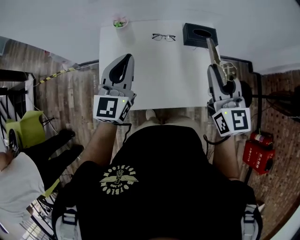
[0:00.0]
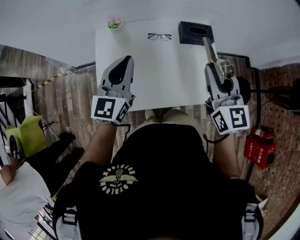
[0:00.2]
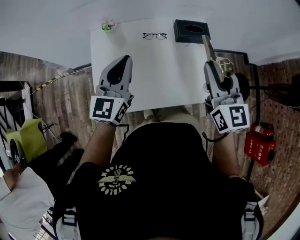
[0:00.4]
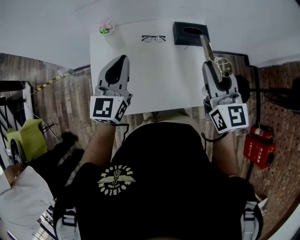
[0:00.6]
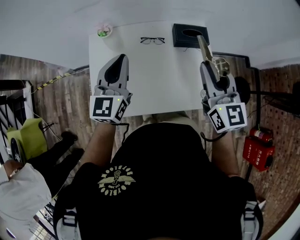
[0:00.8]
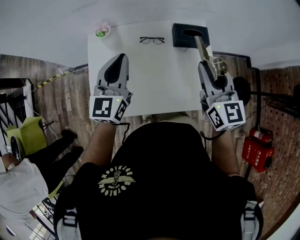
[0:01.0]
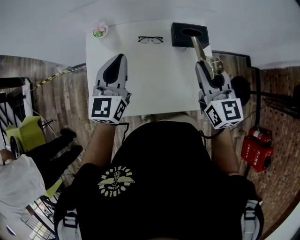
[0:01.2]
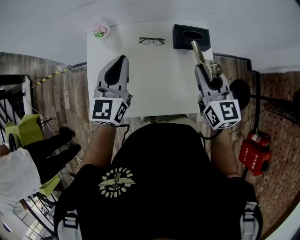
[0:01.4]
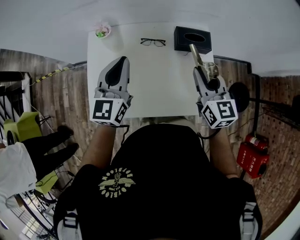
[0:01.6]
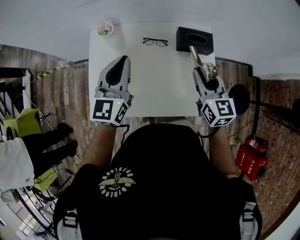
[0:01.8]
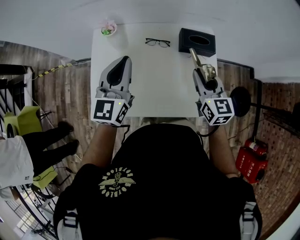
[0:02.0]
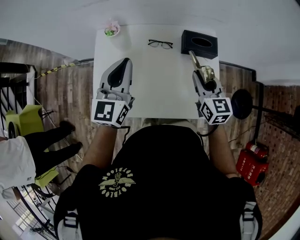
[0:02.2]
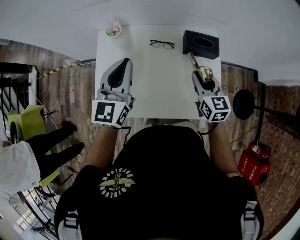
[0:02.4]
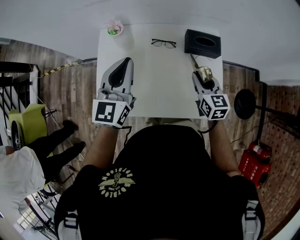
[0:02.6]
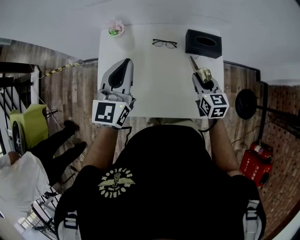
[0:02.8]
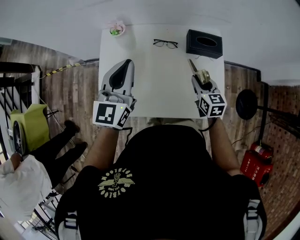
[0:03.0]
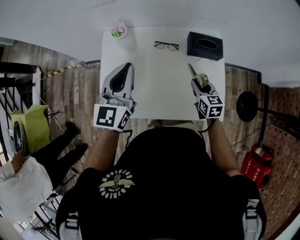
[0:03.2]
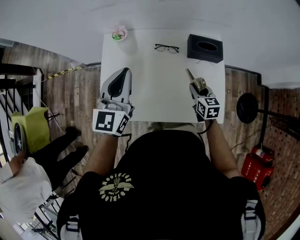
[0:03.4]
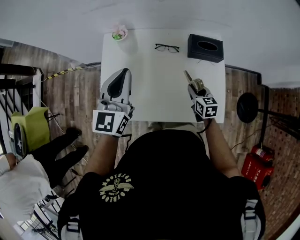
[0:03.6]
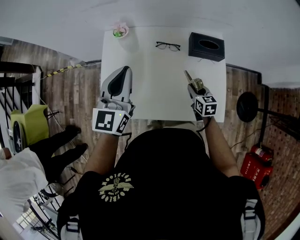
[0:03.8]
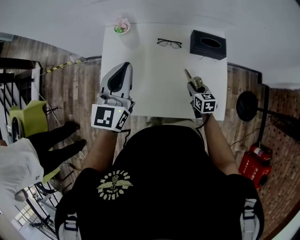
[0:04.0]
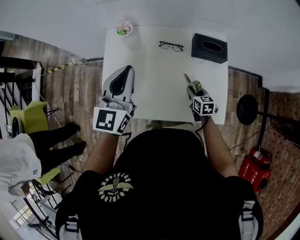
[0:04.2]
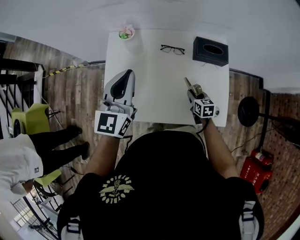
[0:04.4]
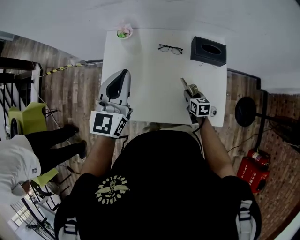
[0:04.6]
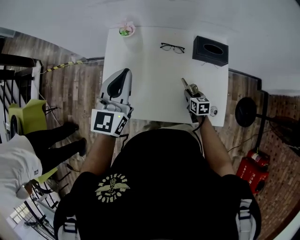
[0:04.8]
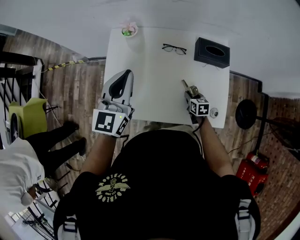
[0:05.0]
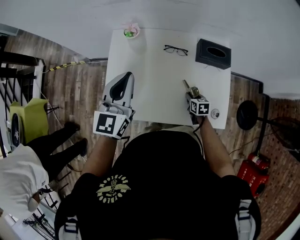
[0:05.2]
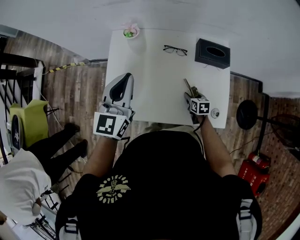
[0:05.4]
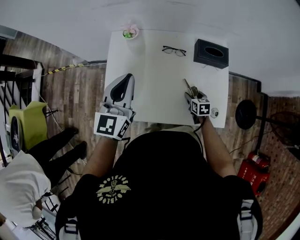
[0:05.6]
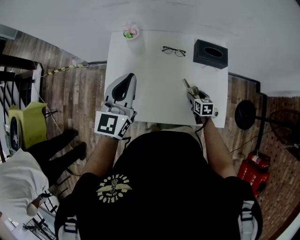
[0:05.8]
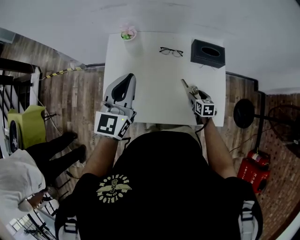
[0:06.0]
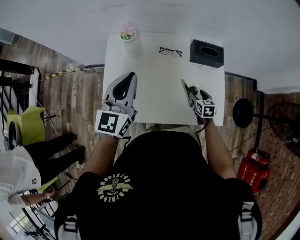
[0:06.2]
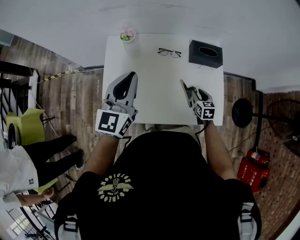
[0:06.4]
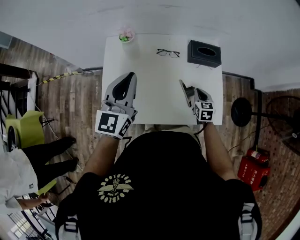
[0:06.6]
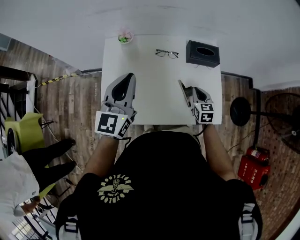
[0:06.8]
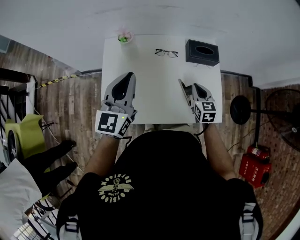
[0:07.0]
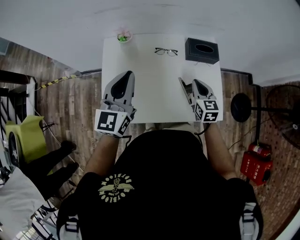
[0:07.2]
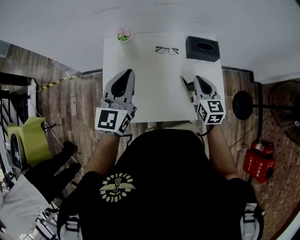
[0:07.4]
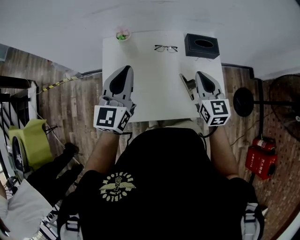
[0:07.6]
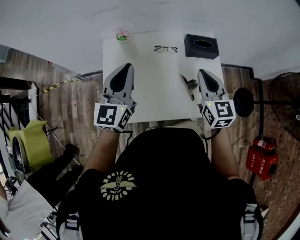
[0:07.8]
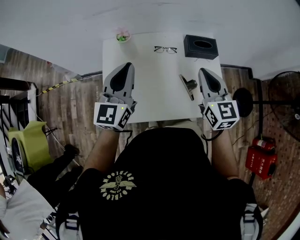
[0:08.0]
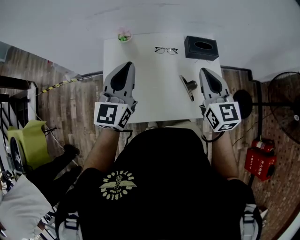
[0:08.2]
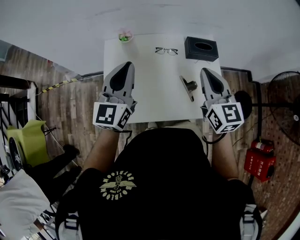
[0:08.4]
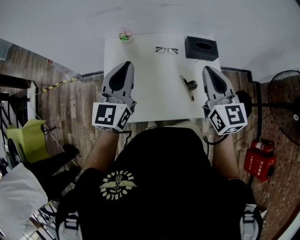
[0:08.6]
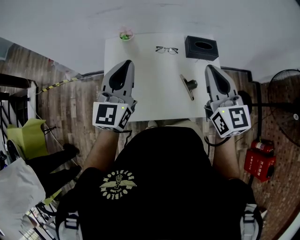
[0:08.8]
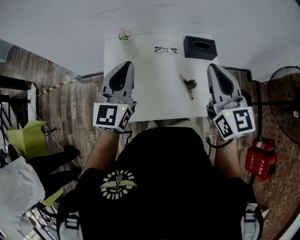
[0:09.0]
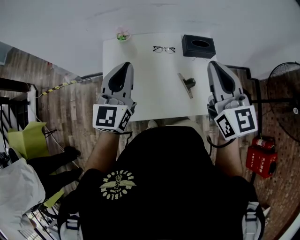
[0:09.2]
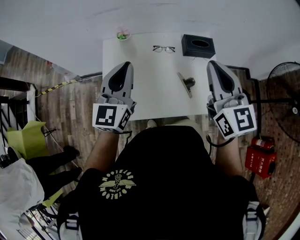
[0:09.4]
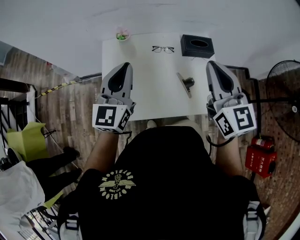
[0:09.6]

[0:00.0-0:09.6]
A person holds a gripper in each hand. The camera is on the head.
0.0 to 1.6 s: The left gripper shifts approximately 10 cm forward and to the right. Meanwhile the right gripper heads downward, forward and to the right, covering some 15 cm.
1.6 to 3.2 s: The right gripper goes about 15 cm downward.
3.2 to 4.8 s: The right gripper shifts approximately 15 cm downward.
4.8 to 6.4 s: The right gripper shifts some 5 cm upward, and opens, then closes once more.
6.4 to 8.0 s: The right gripper travels upward by some 30 cm, angles its fingers upward, by approximately 30 degrees, and closes up.
8.0 to 9.6 s: The right gripper heads upward, covering about 10 cm.

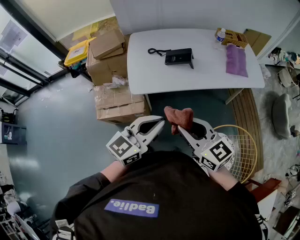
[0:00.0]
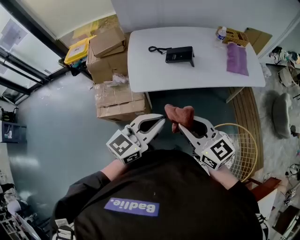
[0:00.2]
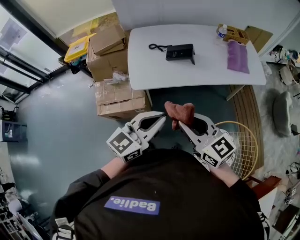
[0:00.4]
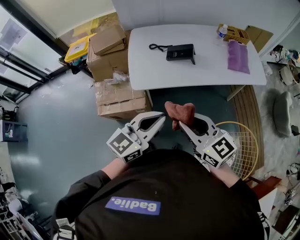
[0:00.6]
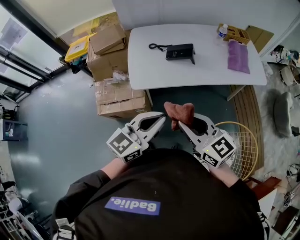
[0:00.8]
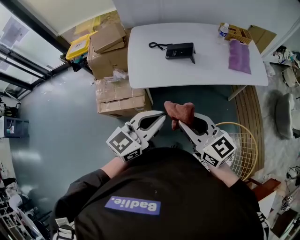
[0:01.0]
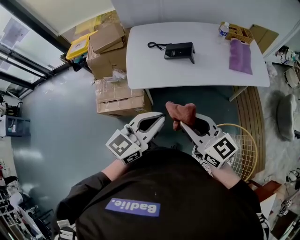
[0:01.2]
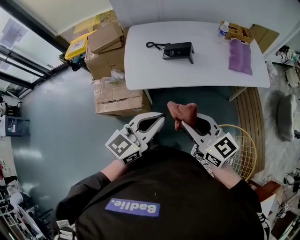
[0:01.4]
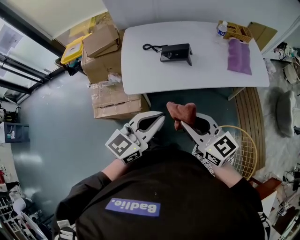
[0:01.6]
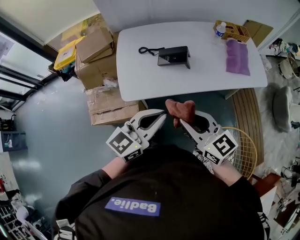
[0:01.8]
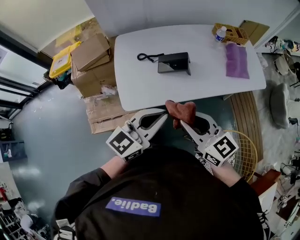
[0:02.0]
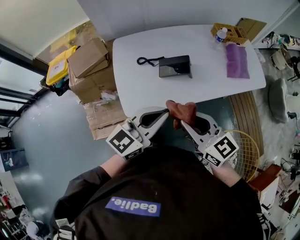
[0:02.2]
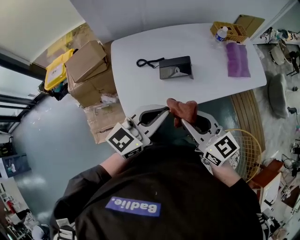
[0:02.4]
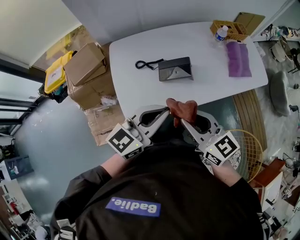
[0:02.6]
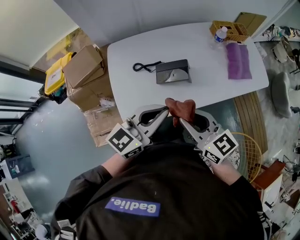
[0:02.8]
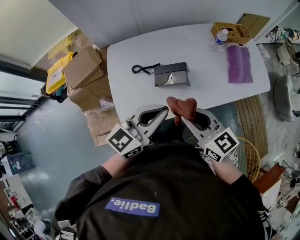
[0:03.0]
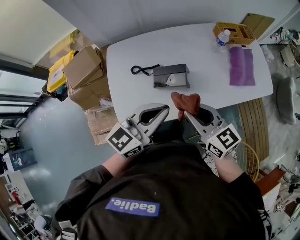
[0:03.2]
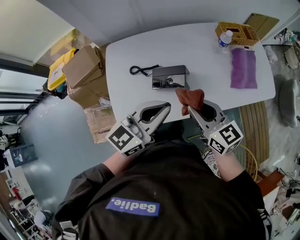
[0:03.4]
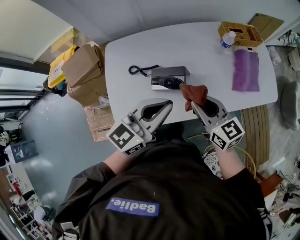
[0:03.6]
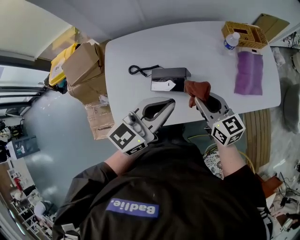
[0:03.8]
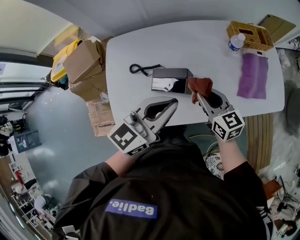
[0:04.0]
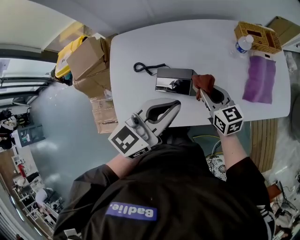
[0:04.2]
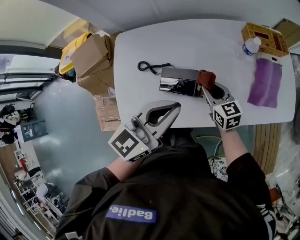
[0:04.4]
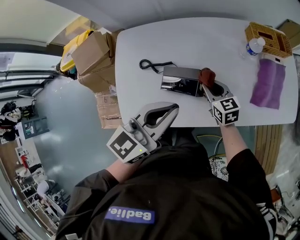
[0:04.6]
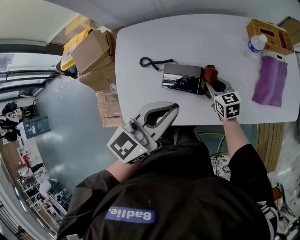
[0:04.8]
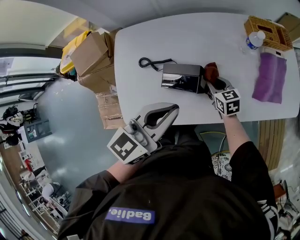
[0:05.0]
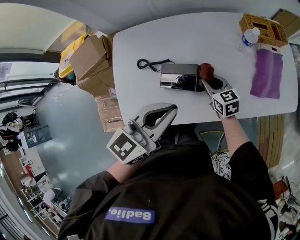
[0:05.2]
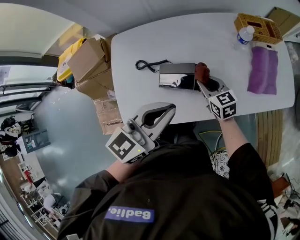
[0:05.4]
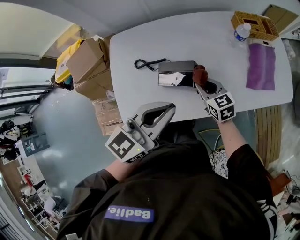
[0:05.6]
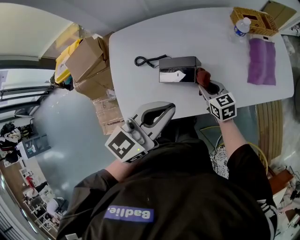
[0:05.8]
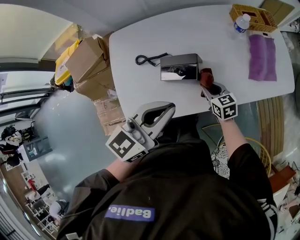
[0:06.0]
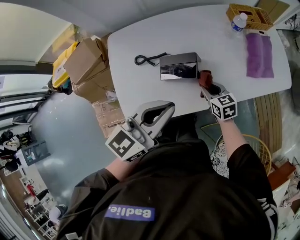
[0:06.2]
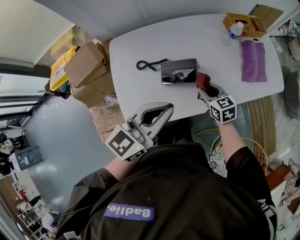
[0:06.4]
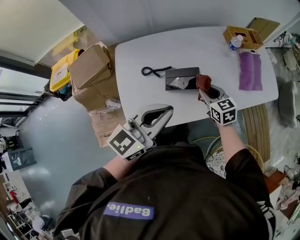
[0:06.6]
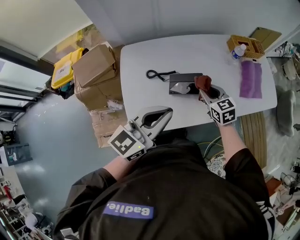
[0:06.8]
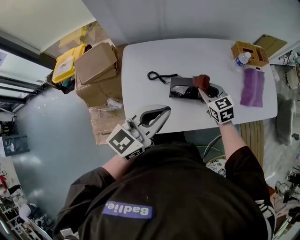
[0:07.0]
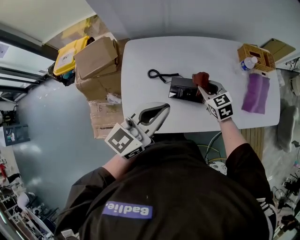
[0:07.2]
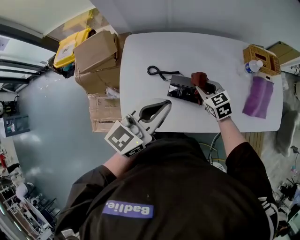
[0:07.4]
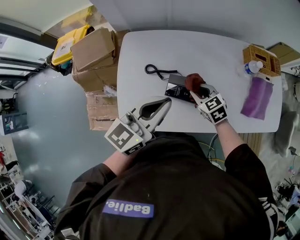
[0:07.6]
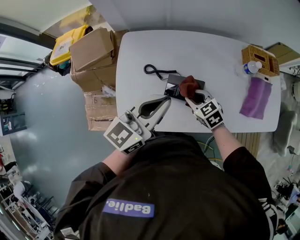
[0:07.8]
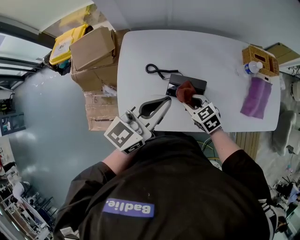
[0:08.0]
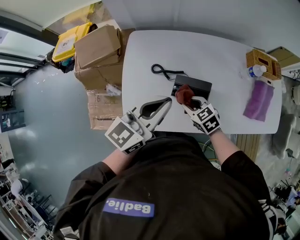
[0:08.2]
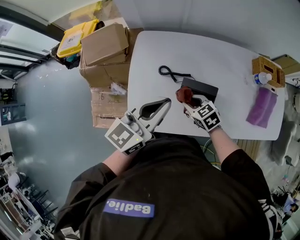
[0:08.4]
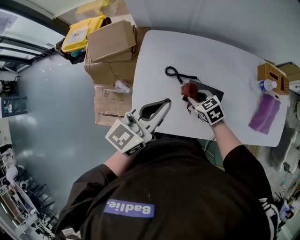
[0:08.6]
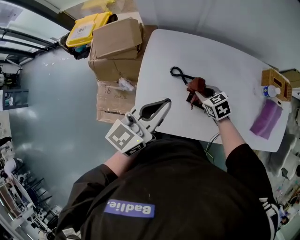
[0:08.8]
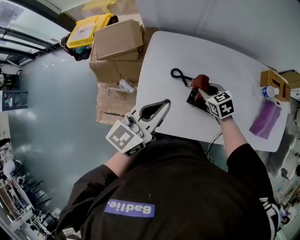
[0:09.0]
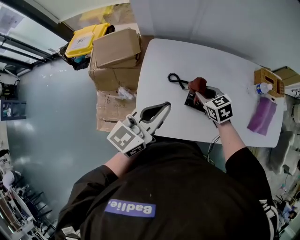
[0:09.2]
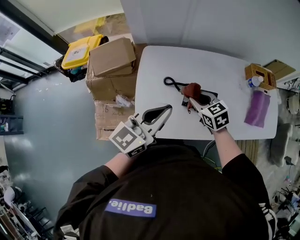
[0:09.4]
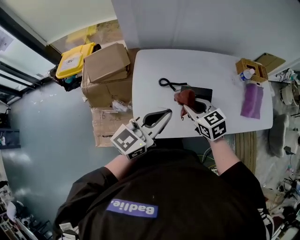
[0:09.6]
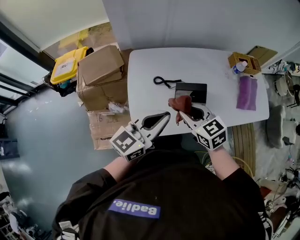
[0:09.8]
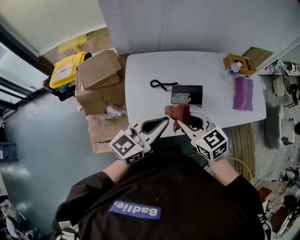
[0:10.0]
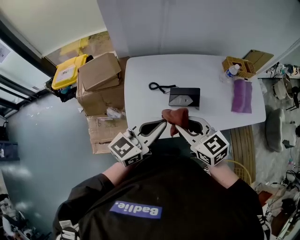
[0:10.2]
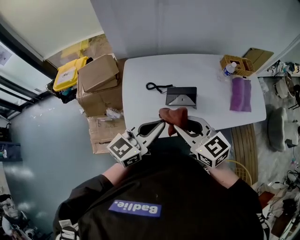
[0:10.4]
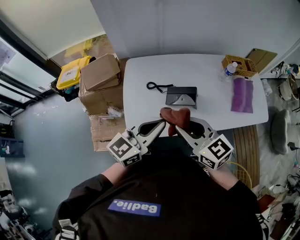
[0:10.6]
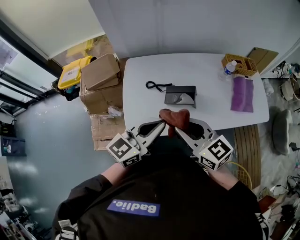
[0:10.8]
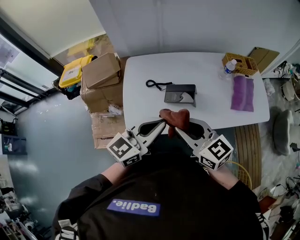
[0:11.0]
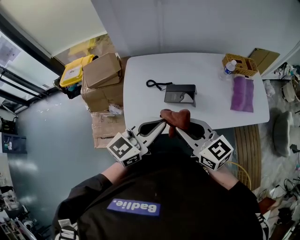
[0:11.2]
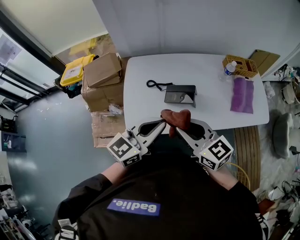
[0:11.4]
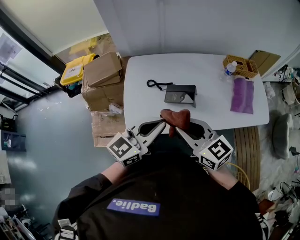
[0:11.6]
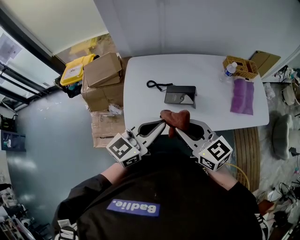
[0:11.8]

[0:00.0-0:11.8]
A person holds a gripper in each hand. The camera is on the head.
0.0 to 1.4 s: The left gripper moves some 5 cm, while the right gripper shifts some 5 cm to the right.
1.4 to 3.0 s: The grippers both shift forward by roughly 25 cm.
3.0 to 4.4 s: The left gripper moves forward and to the right, approximately 15 cm. Meanwhile the right gripper shifts some 30 cm forward and downward.
4.4 to 6.0 s: The left gripper is displaced backward by some 5 cm. The right gripper goes about 10 cm backward and downward.
6.0 to 7.4 s: The left gripper heads to the left and forward, covering about 10 cm, while the right gripper moves forward, to the left and upward, approximately 15 cm, and changes its angle by approximately 20 degrees.
7.4 to 8.8 s: Both grippers move to the left, some 10 cm.
8.8 to 10.4 s: The right gripper heads upward and backward, covering about 35 cm, and points its fingers about 30 degrees further upward. The left gripper shifts about 10 cm backward, and changes its angle by approximately 20 degrees.
10.4 to 11.8 s: The right gripper shifts by approximately 5 cm.

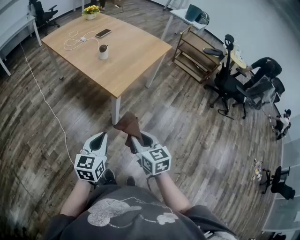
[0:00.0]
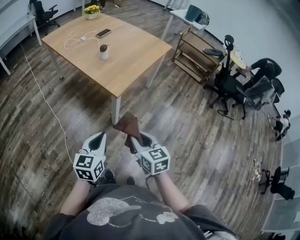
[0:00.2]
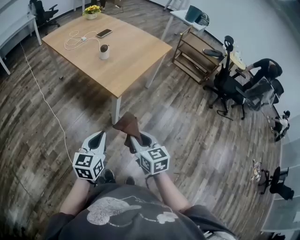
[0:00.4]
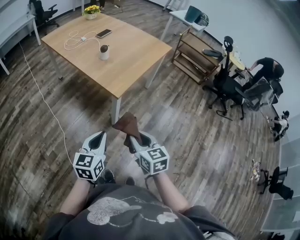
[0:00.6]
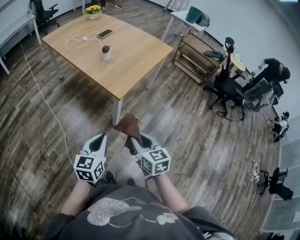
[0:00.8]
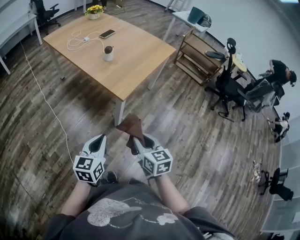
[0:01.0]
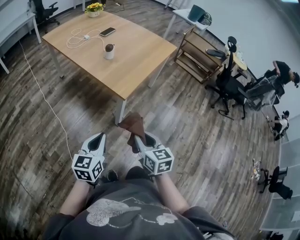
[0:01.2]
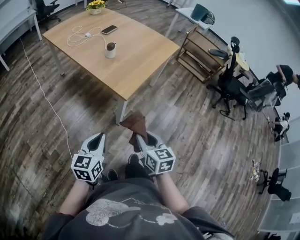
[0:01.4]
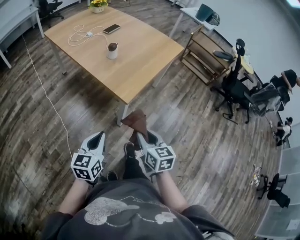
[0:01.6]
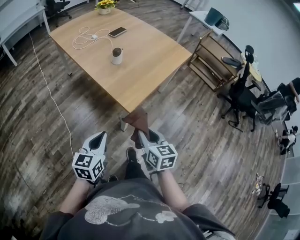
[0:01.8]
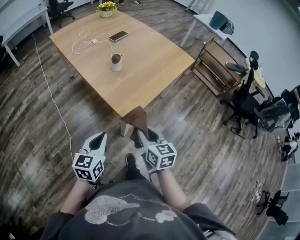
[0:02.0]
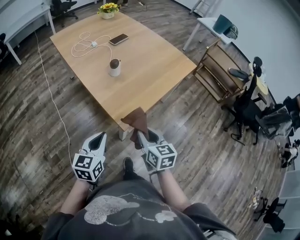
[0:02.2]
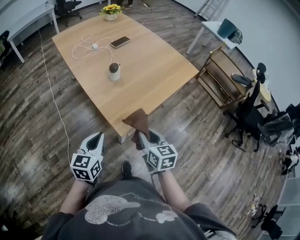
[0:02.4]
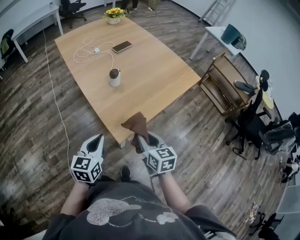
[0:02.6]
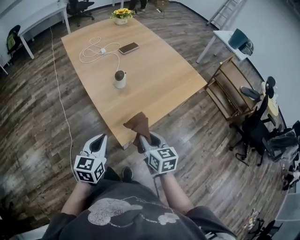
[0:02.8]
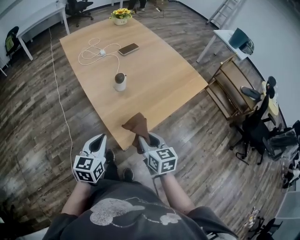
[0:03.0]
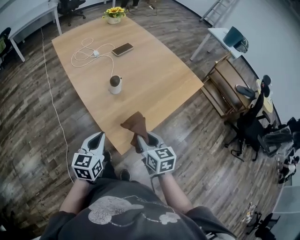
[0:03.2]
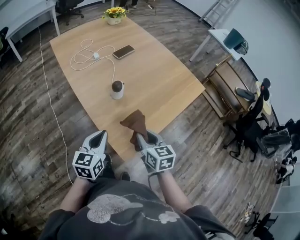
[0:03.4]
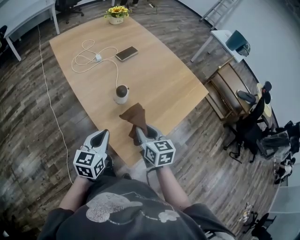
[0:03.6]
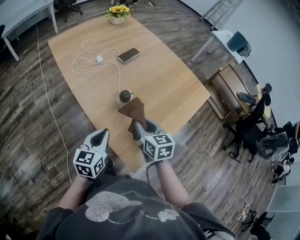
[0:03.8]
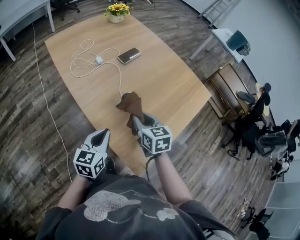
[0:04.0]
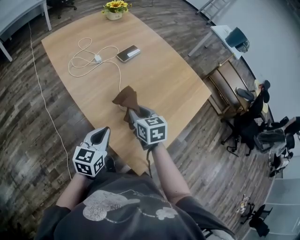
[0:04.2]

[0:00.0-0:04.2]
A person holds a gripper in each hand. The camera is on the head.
0.0 to 1.4 s: The left gripper moves to the left, about 5 cm. The right gripper changes place by about 5 cm.
1.4 to 2.8 s: The two grippers go roughly 25 cm forward.
2.8 to 4.2 s: The left gripper is displaced forward by roughly 20 cm; the right gripper is displaced forward and to the left by some 30 cm.
